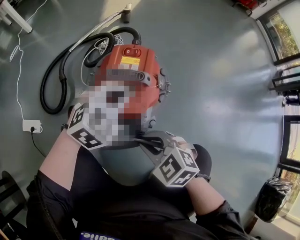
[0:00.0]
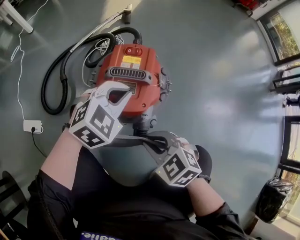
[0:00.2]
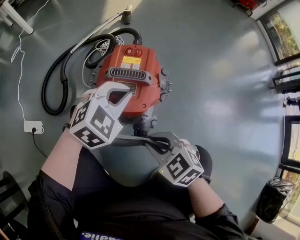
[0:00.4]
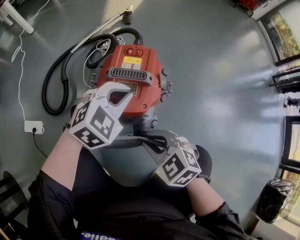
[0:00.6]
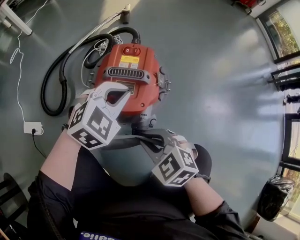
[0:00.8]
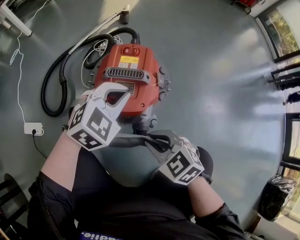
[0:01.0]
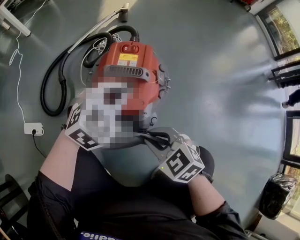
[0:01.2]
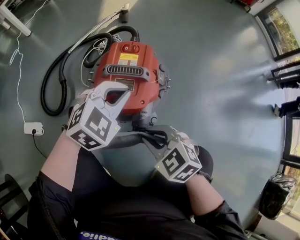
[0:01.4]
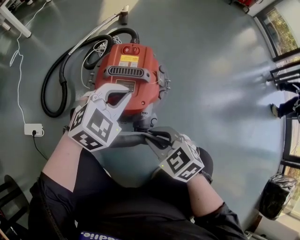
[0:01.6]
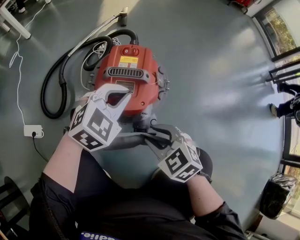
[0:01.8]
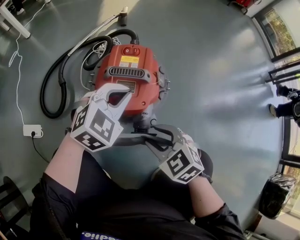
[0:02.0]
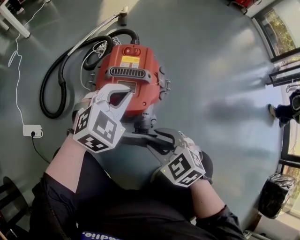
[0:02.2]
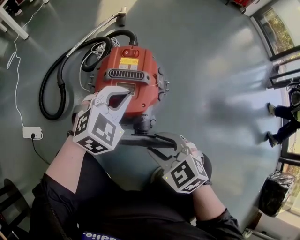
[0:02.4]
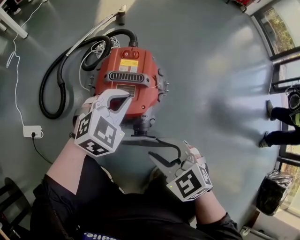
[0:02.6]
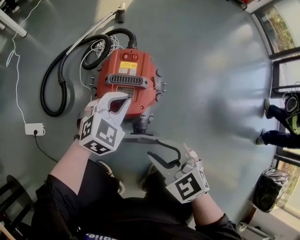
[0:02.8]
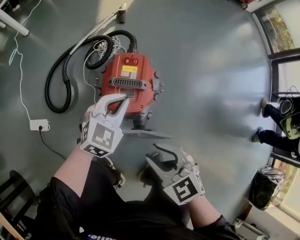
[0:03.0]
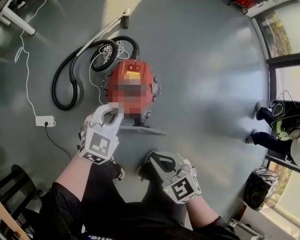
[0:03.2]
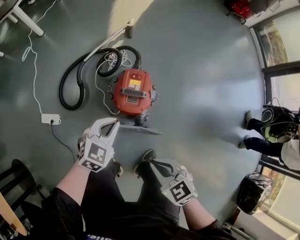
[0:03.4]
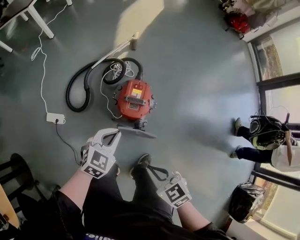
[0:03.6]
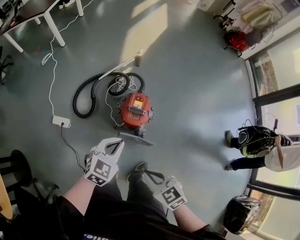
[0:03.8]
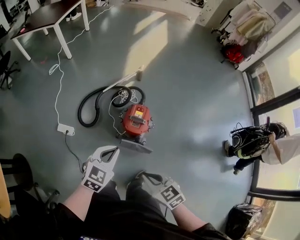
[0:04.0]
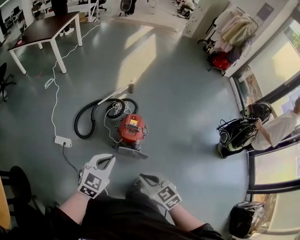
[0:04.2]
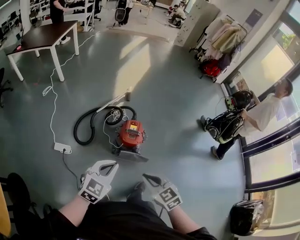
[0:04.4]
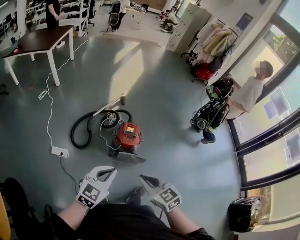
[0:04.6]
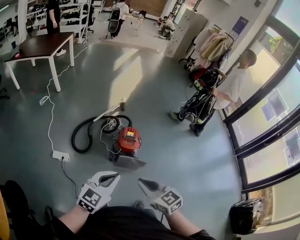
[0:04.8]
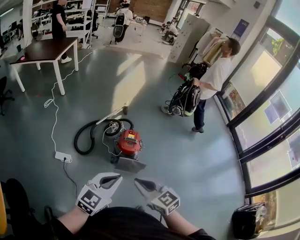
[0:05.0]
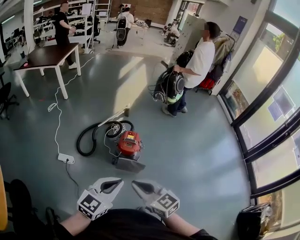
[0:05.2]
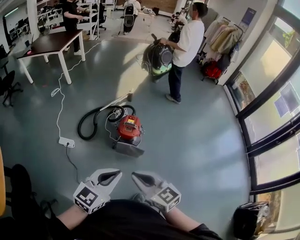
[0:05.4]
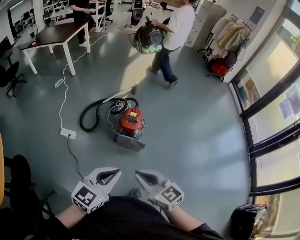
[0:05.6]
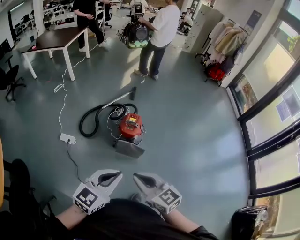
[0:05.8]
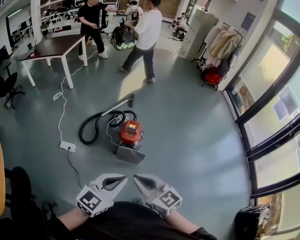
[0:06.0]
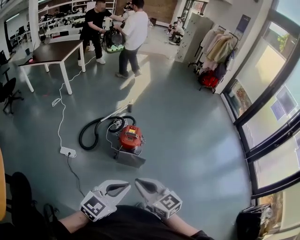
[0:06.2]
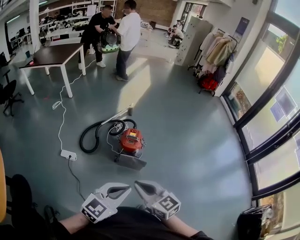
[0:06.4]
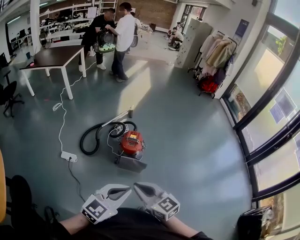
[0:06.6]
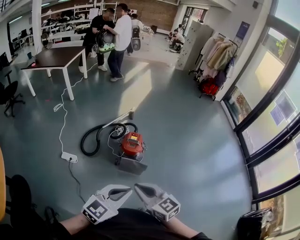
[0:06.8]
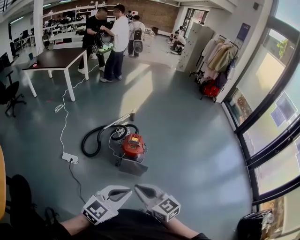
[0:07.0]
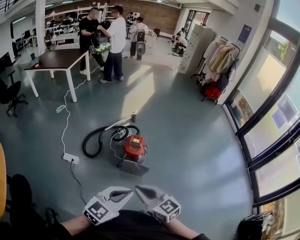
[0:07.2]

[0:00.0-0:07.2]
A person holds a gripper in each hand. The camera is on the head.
0:00.0 to 0:01.4: There are only small adjustments of the grippers.
0:01.4 to 0:02.8: The right gripper goes approximately 10 cm upward, and opens up.
0:02.8 to 0:04.4: The right gripper moves upward, about 40 cm, and closes. Meanwhile the left gripper travels upward and backward by roughly 60 cm, and changes its angle by approximately 20 degrees.
0:04.4 to 0:05.8: The right gripper shifts roughly 15 cm backward and upward, and rotates roughly 20 degrees; the left gripper goes roughly 25 cm backward, to the right and upward.
0:05.8 to 0:07.2: The grippers stay close to where they were, moving slightly.

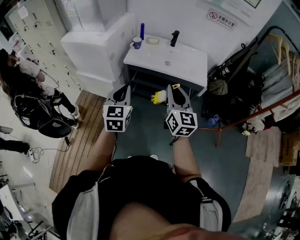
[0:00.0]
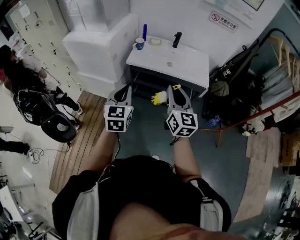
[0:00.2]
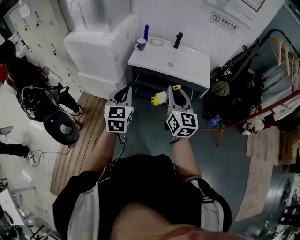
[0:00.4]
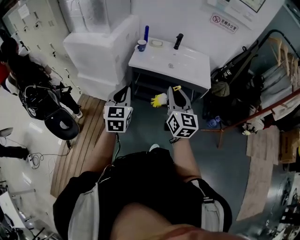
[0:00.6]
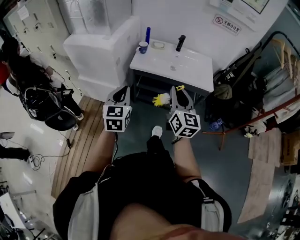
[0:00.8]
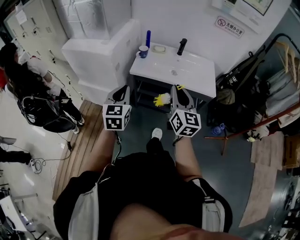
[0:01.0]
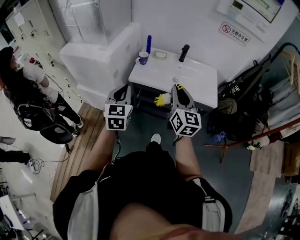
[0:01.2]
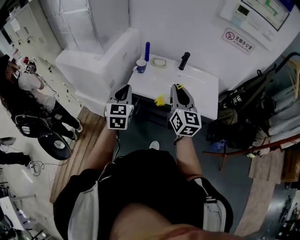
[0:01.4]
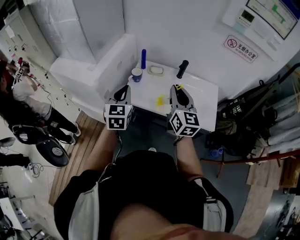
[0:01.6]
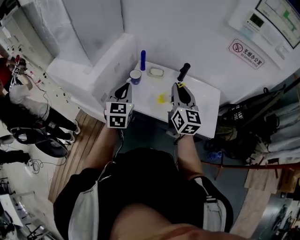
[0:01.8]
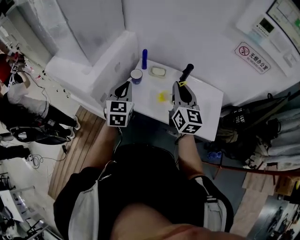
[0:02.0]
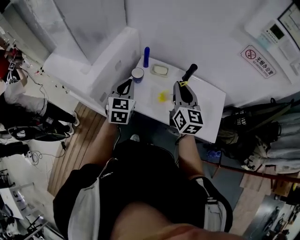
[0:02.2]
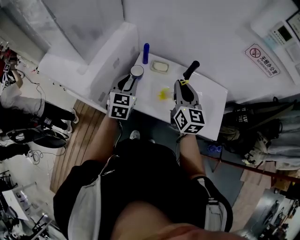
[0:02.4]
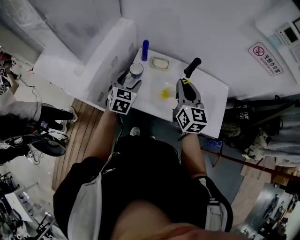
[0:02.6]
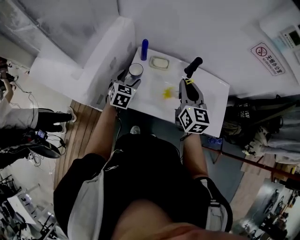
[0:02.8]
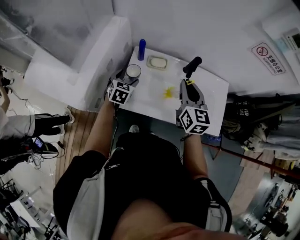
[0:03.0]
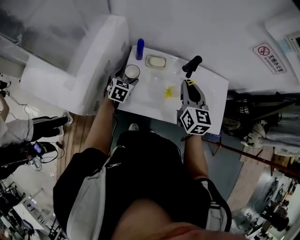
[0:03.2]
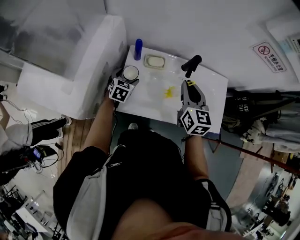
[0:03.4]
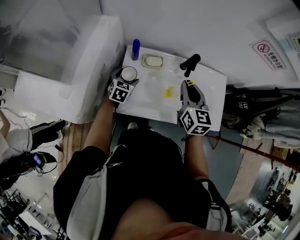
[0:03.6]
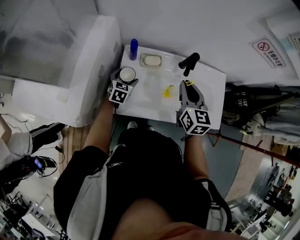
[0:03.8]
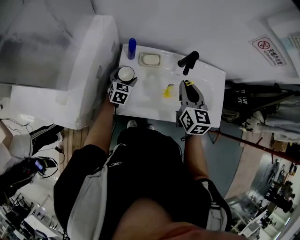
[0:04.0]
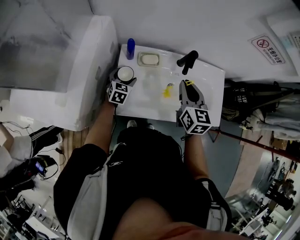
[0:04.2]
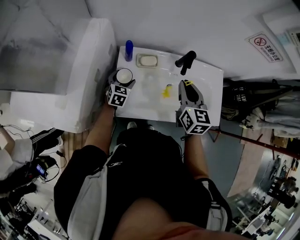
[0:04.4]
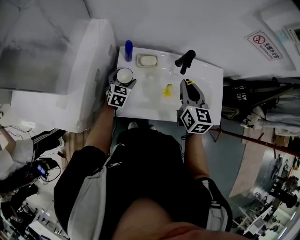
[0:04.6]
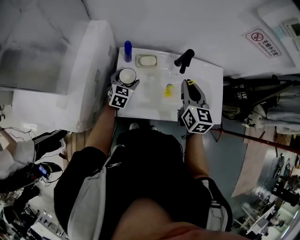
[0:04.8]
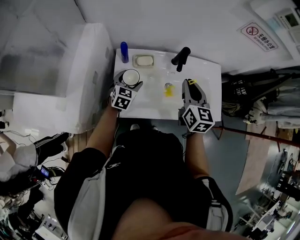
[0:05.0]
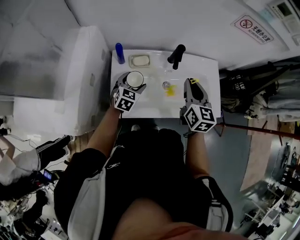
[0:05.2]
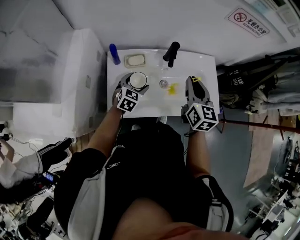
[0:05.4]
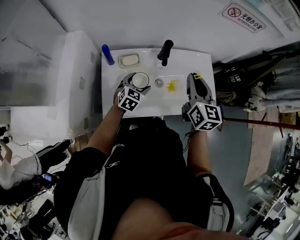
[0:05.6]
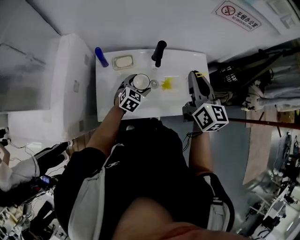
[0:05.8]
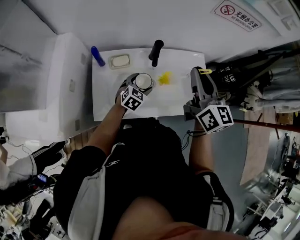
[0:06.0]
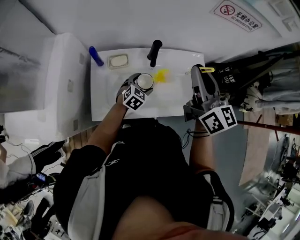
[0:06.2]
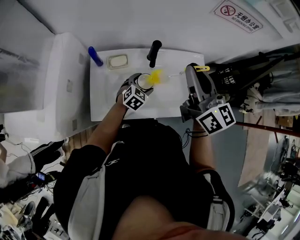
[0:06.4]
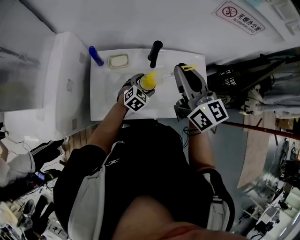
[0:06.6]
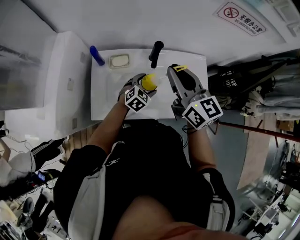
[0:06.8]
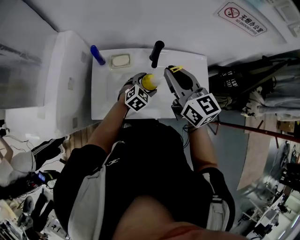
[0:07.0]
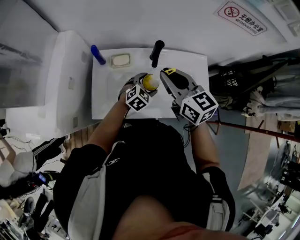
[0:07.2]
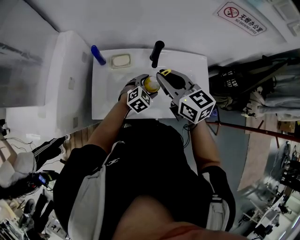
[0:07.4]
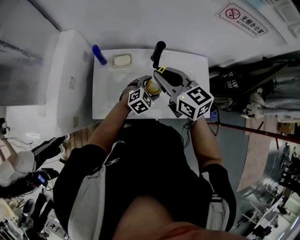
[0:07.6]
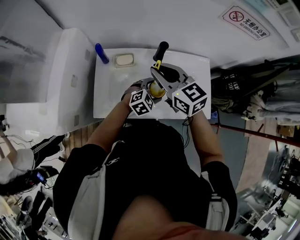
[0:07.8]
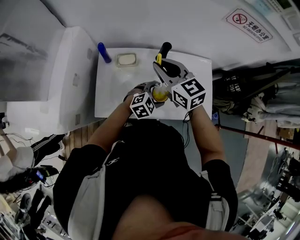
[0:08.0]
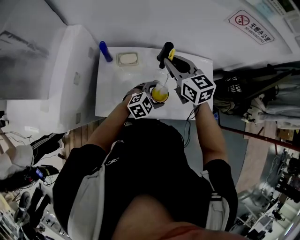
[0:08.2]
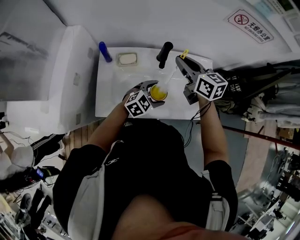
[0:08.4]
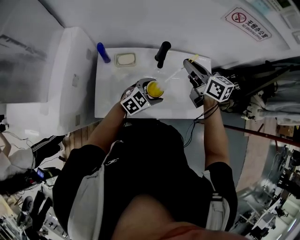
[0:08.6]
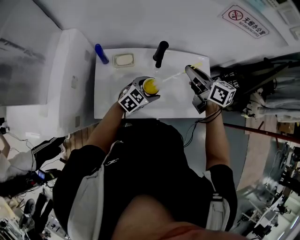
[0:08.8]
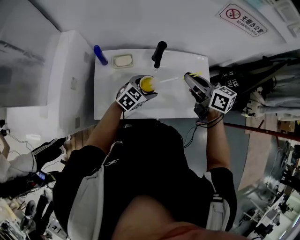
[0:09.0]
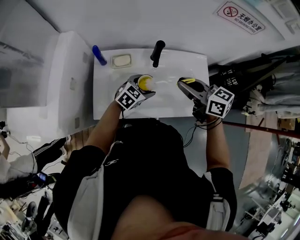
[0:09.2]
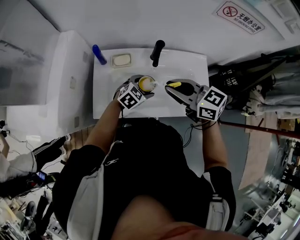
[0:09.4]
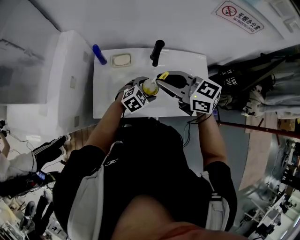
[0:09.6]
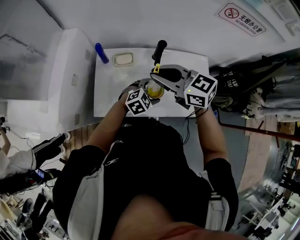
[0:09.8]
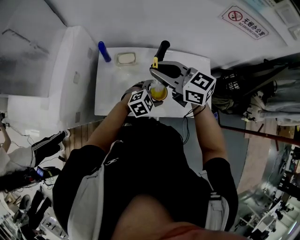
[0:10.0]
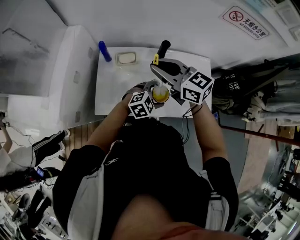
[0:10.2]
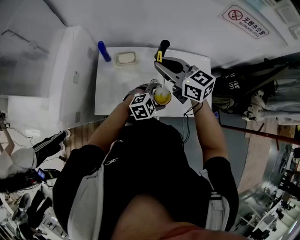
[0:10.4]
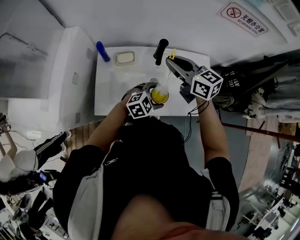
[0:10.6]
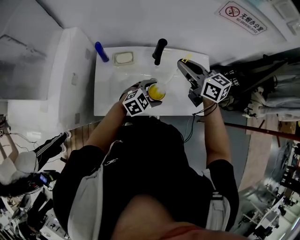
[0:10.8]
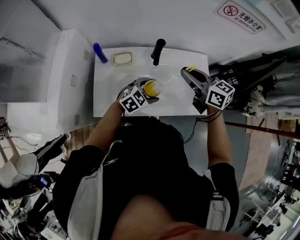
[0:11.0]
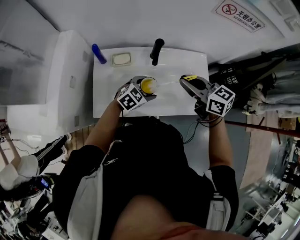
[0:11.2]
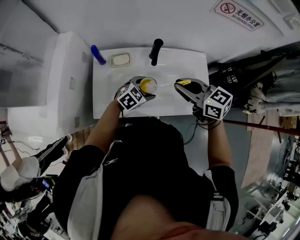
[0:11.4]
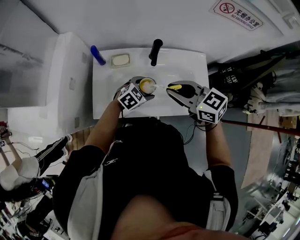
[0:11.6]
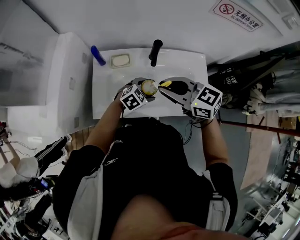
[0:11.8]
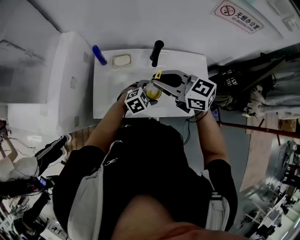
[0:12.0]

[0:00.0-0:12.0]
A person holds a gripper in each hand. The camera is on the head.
0:00.0 to 0:01.6: The two grippers go roughly 35 cm forward.
0:01.6 to 0:03.0: The left gripper travels forward and downward by about 30 cm, turns by about 30 degrees, and opens up. The right gripper moves forward and downward, roughly 20 cm.
0:03.0 to 0:04.4: The left gripper heads downward and forward, covering about 10 cm.
0:04.4 to 0:06.0: The left gripper goes approximately 25 cm to the right, and changes its angle by roughly 30 degrees. The right gripper heads to the right and upward, covering roughly 20 cm, and swivels about 20 degrees.
0:06.0 to 0:07.6: The right gripper goes approximately 15 cm to the left and downward, and changes its angle by approximately 40 degrees. Meanwhile the left gripper travels to the right by approximately 5 cm.
0:07.6 to 0:09.0: The right gripper moves to the right, some 10 cm, and turns by about 20 degrees.
0:09.0 to 0:10.4: The left gripper is displaced backward and to the right by approximately 10 cm, and swivels about 20 degrees. Meanwhile the right gripper moves to the left, about 15 cm, and rotates some 30 degrees.

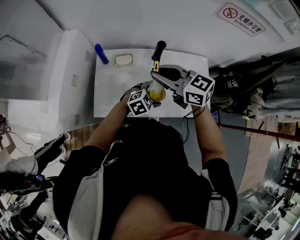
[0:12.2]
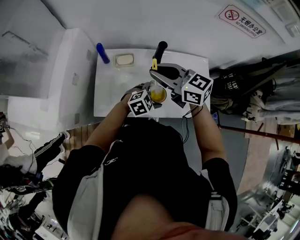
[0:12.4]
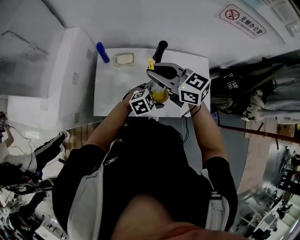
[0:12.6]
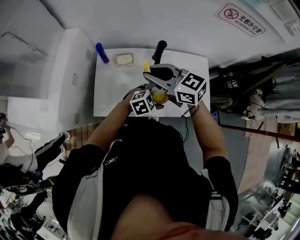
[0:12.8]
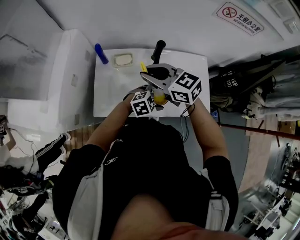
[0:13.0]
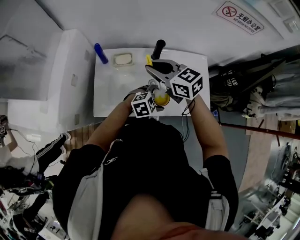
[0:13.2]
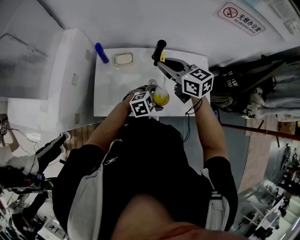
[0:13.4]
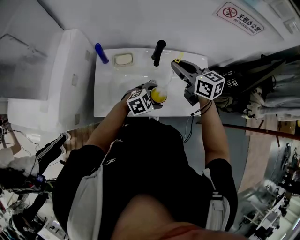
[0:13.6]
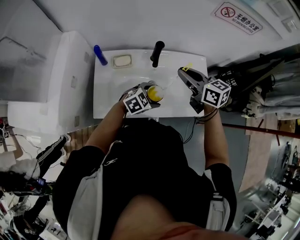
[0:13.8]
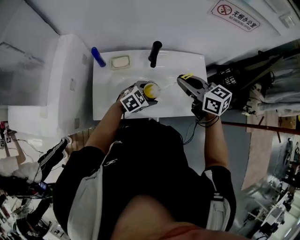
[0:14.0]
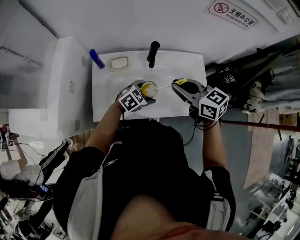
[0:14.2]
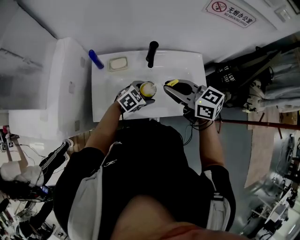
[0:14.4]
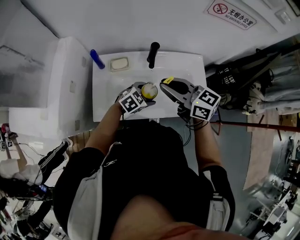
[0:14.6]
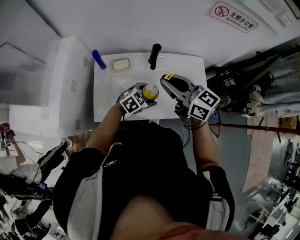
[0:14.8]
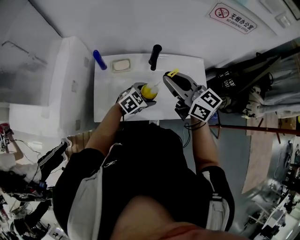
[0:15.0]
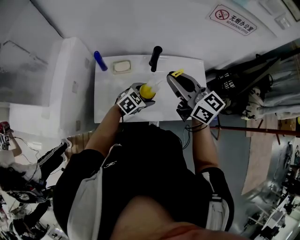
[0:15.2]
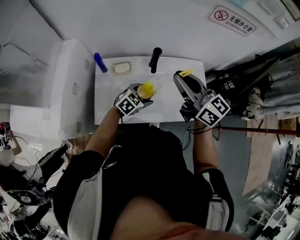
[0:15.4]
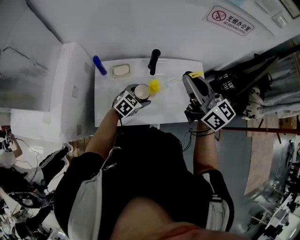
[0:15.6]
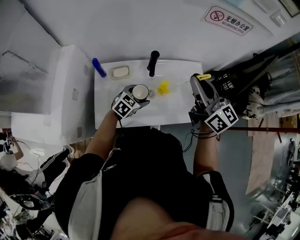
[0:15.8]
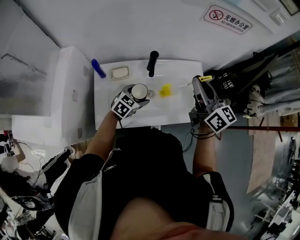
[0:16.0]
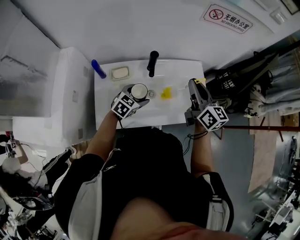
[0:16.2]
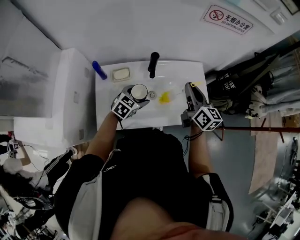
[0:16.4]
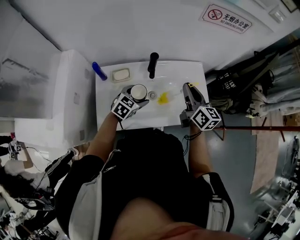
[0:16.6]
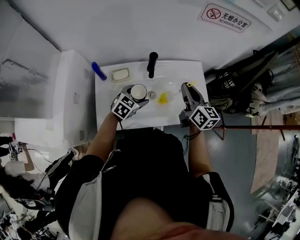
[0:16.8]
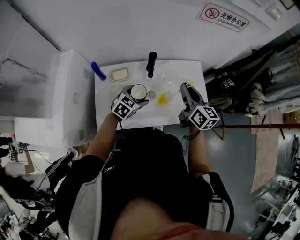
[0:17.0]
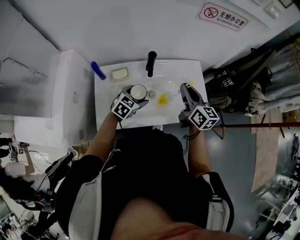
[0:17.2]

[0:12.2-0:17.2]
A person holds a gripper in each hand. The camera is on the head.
0:12.2 to 0:13.8: The right gripper ends up roughly 15 cm from where it was, and rotates about 20 degrees.
0:13.8 to 0:15.6: The left gripper is displaced to the left by about 5 cm. Meanwhile the right gripper shifts some 10 cm upward, and changes its angle by some 30 degrees.
0:15.6 to 0:17.2: The right gripper travels downward by approximately 15 cm, and rotates approximately 30 degrees.
